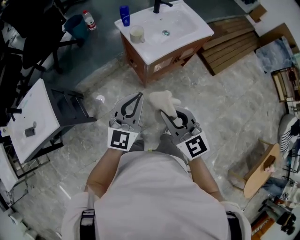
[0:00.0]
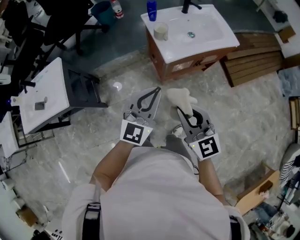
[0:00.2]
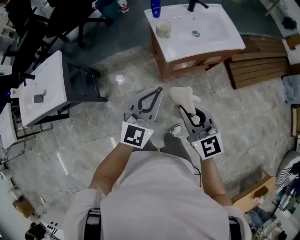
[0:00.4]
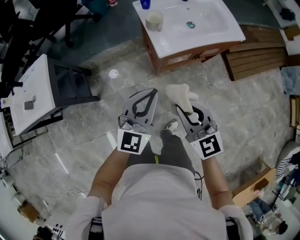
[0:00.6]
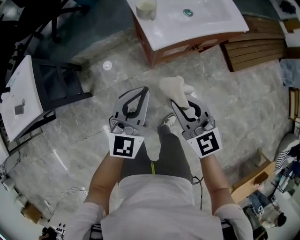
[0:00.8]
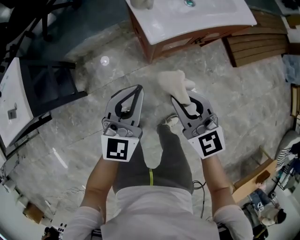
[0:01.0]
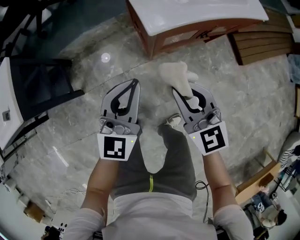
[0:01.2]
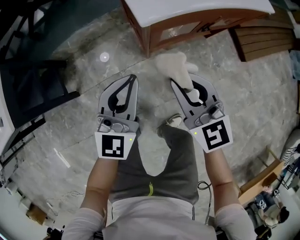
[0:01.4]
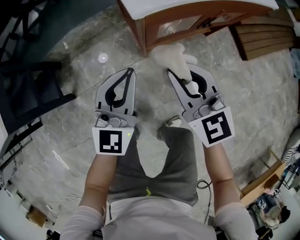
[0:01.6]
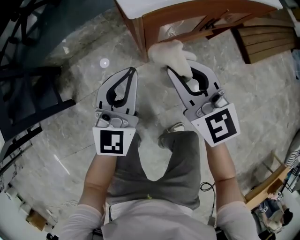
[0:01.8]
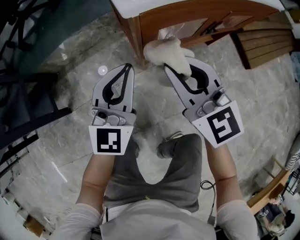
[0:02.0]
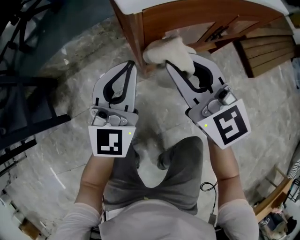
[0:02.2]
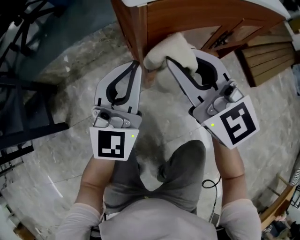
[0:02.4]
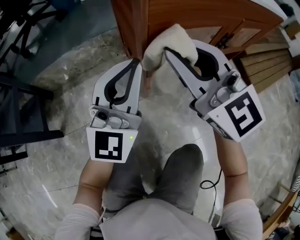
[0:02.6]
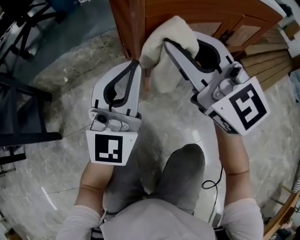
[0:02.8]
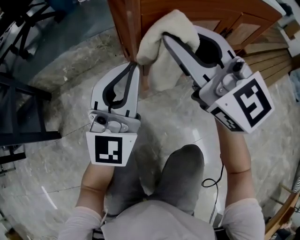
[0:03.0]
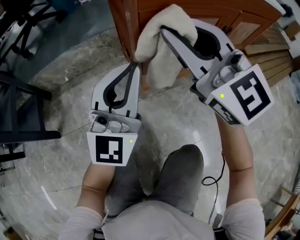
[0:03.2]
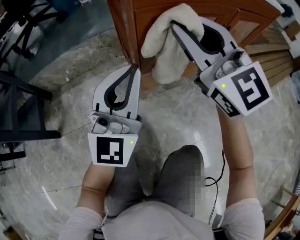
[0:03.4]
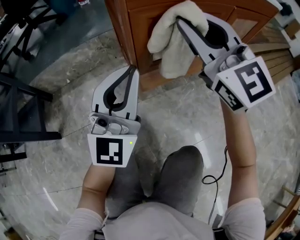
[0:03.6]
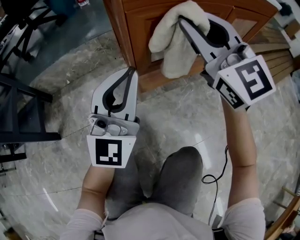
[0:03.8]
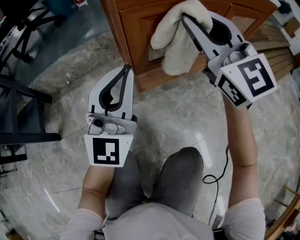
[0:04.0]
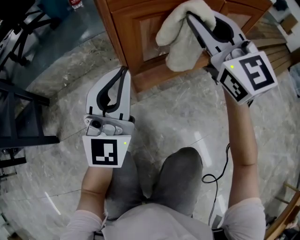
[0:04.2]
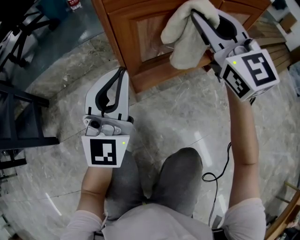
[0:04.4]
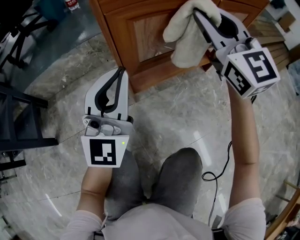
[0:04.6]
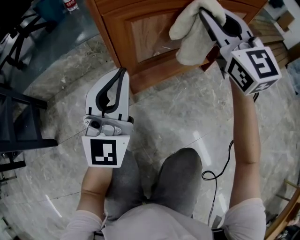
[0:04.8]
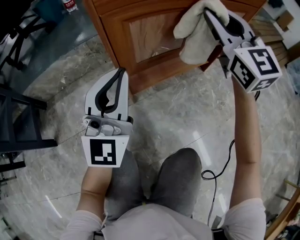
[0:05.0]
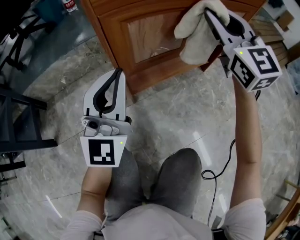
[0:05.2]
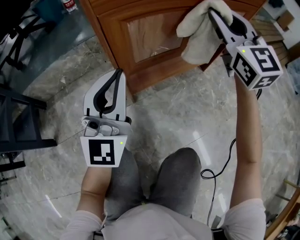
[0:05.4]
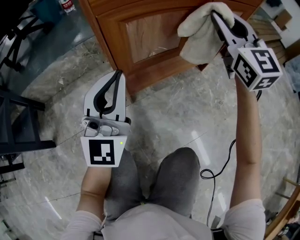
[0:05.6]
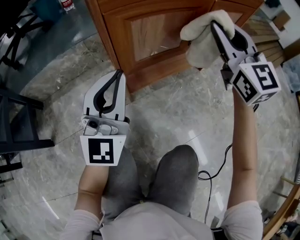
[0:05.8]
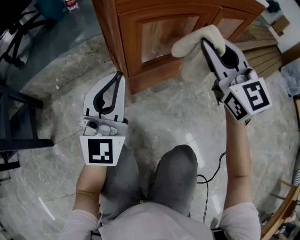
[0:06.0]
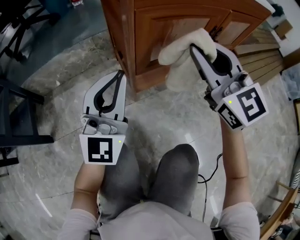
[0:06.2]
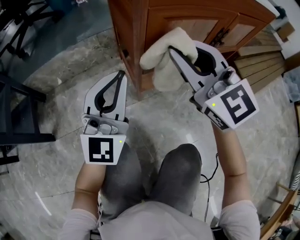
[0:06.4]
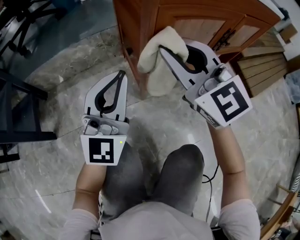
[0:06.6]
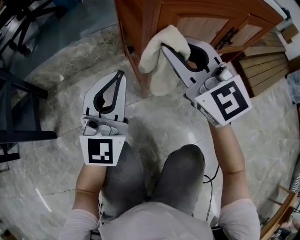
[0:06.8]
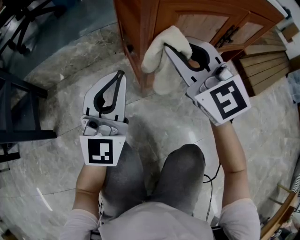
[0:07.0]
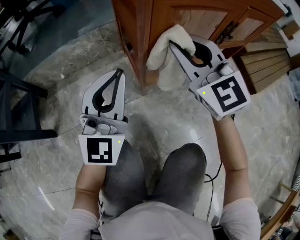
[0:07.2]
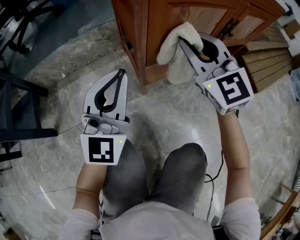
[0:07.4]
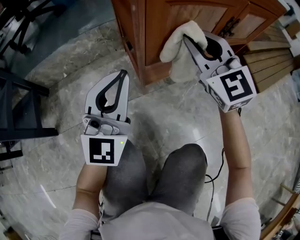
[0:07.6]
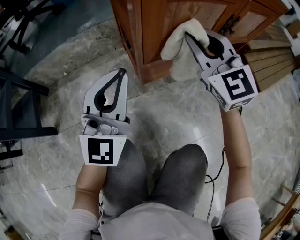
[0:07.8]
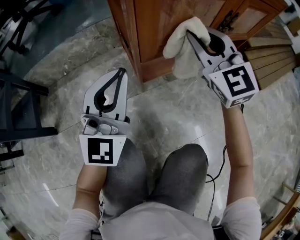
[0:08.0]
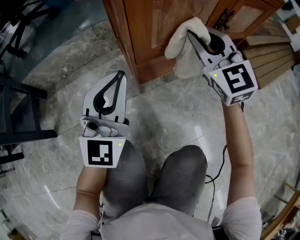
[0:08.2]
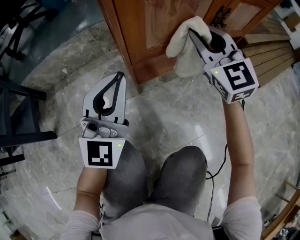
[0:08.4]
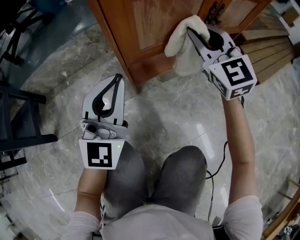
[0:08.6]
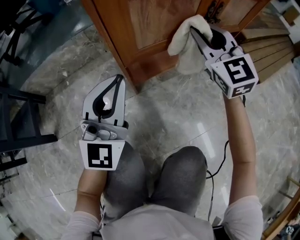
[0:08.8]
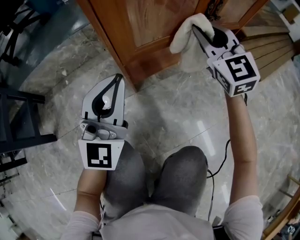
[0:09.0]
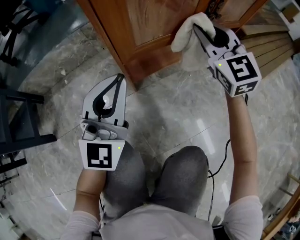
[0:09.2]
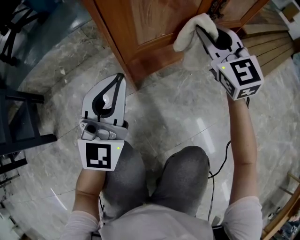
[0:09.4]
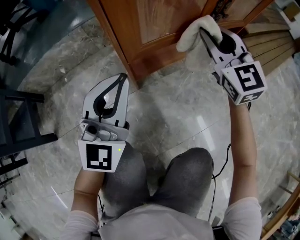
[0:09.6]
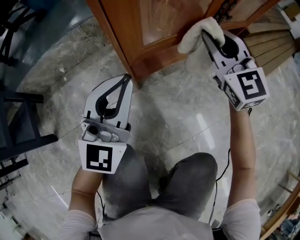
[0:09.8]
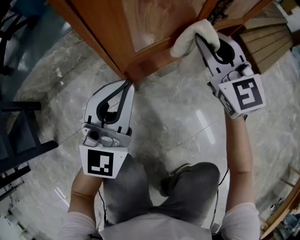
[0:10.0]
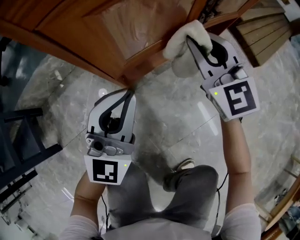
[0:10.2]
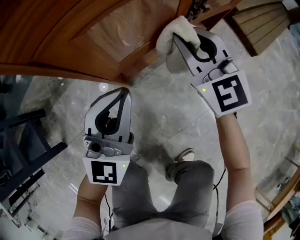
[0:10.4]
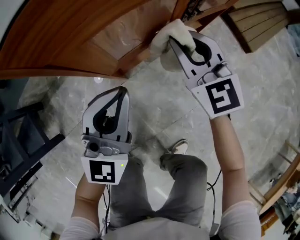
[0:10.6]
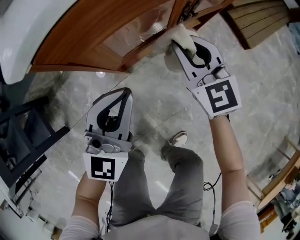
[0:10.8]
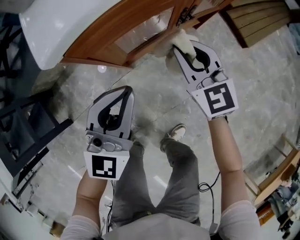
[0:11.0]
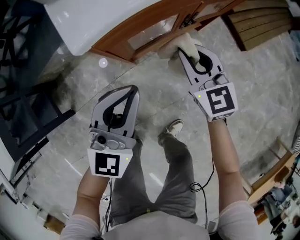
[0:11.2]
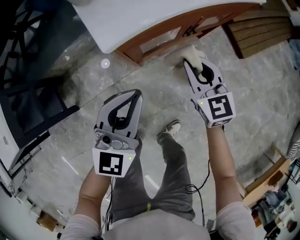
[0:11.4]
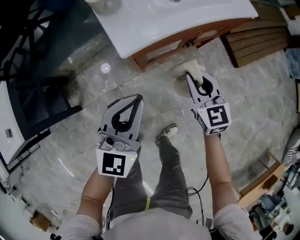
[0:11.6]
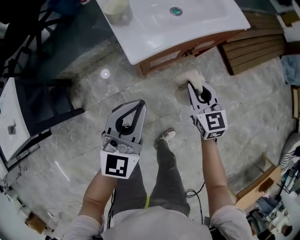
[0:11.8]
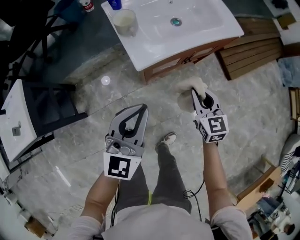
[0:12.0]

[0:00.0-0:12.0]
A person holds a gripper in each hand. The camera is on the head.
0:00.0 to 0:01.6: The right gripper moves downward and forward, some 50 cm. The left gripper goes approximately 40 cm downward.
0:01.6 to 0:03.0: The left gripper moves downward, approximately 15 cm, and changes its angle by roughly 20 degrees, while the right gripper is displaced downward and forward by some 10 cm, and rotates about 20 degrees.
0:03.0 to 0:04.4: The right gripper is displaced to the right by some 15 cm.
0:04.4 to 0:06.0: The right gripper shifts roughly 5 cm backward, and reaches about 10 cm to the right, then returns.
0:06.0 to 0:07.6: The right gripper goes about 10 cm to the left and downward; the left gripper moves approximately 5 cm.
0:07.6 to 0:09.0: The right gripper travels to the right by roughly 10 cm, while the left gripper is displaced to the right by approximately 5 cm.
0:09.0 to 0:10.4: The left gripper shifts approximately 5 cm forward.
0:10.4 to 0:12.0: Both grippers move upward, roughly 40 cm. The right gripper changes its angle by roughly 30 degrees.

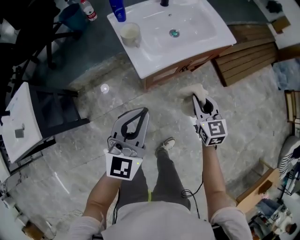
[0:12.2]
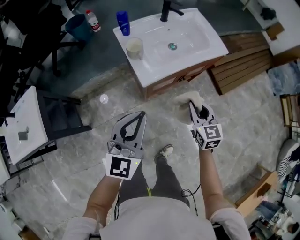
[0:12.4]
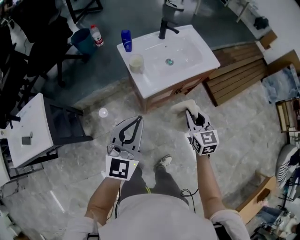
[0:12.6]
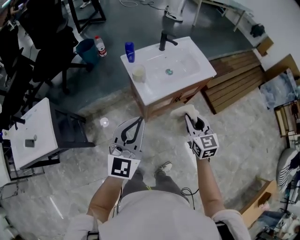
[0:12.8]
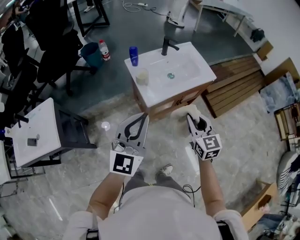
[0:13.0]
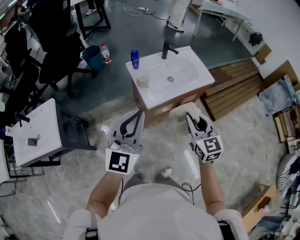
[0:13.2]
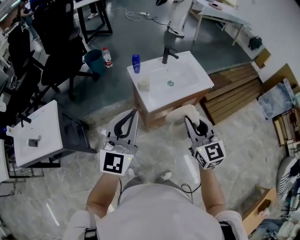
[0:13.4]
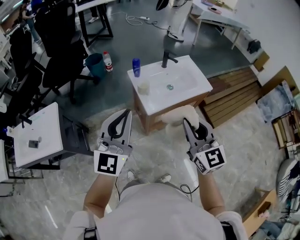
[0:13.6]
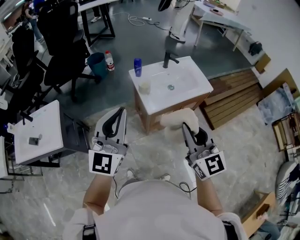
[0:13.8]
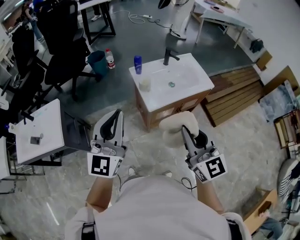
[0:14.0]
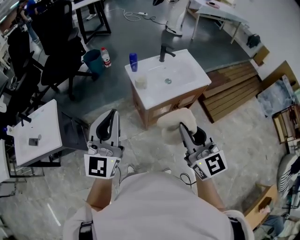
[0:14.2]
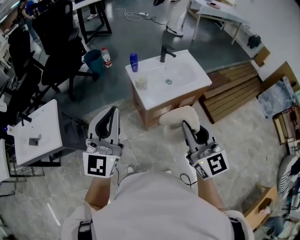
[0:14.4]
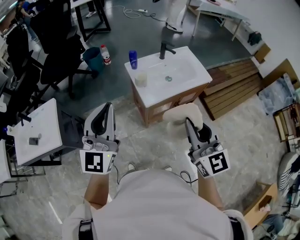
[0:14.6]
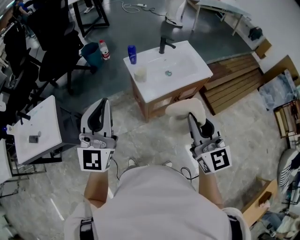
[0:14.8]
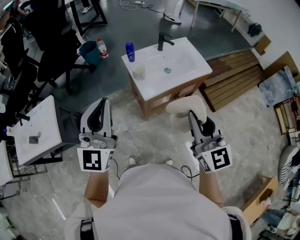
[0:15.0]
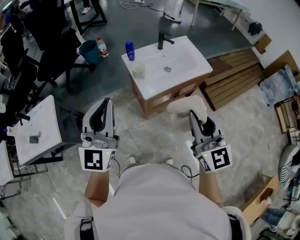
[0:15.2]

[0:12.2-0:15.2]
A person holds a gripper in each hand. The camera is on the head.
0:12.2 to 0:13.8: The left gripper travels upward by about 35 cm, and swivels roughly 20 degrees. Meanwhile the right gripper is displaced upward and backward by roughly 40 cm, and swivels about 30 degrees.
0:13.8 to 0:15.2: There are only small adjustments of the grippers.

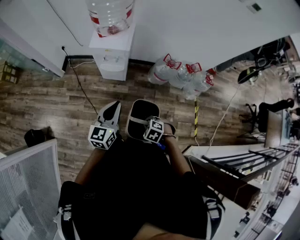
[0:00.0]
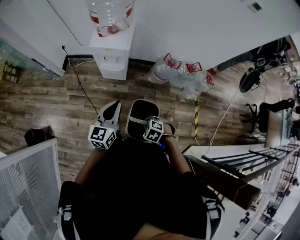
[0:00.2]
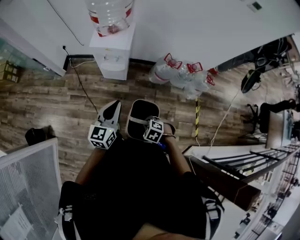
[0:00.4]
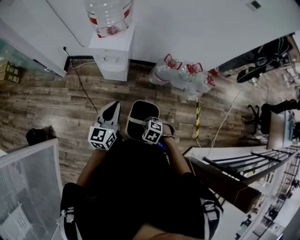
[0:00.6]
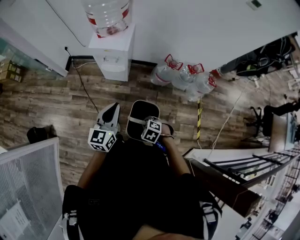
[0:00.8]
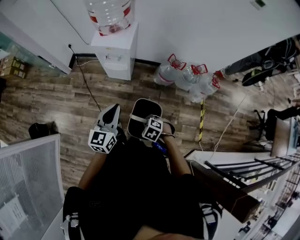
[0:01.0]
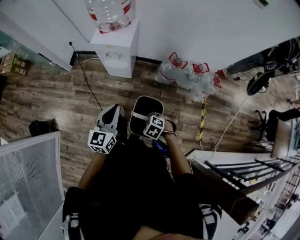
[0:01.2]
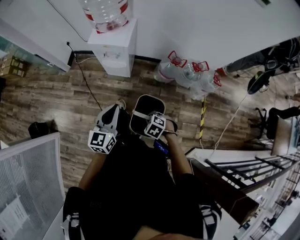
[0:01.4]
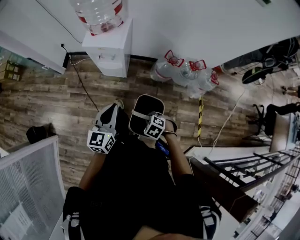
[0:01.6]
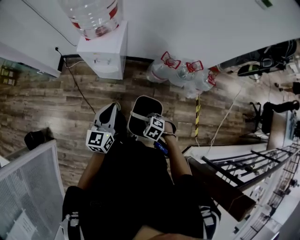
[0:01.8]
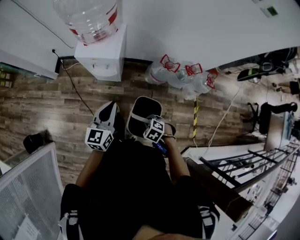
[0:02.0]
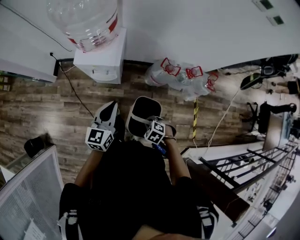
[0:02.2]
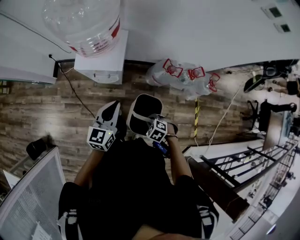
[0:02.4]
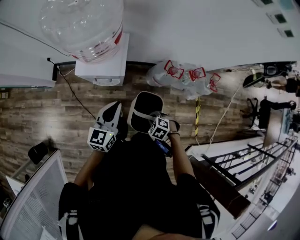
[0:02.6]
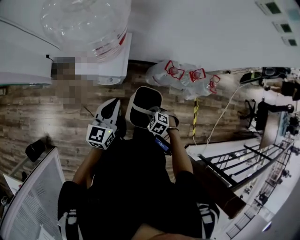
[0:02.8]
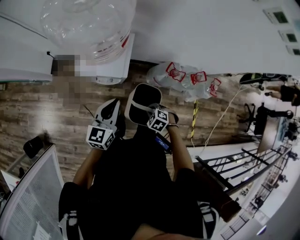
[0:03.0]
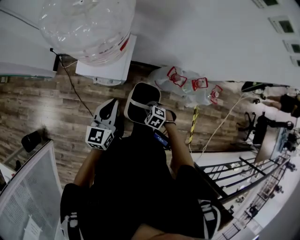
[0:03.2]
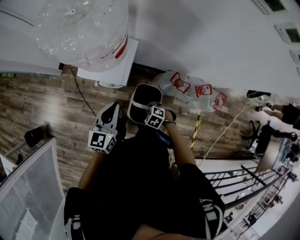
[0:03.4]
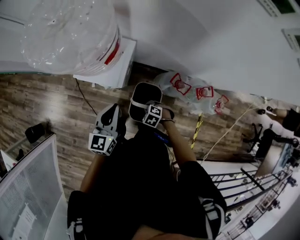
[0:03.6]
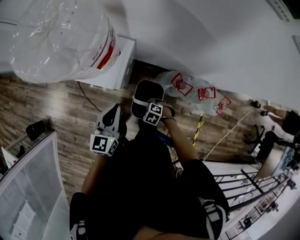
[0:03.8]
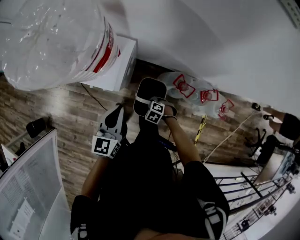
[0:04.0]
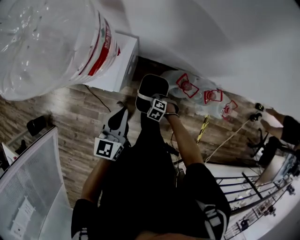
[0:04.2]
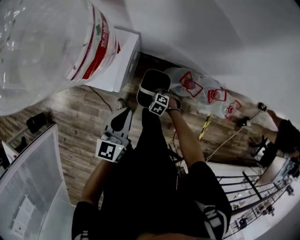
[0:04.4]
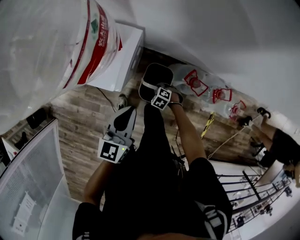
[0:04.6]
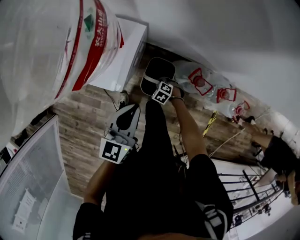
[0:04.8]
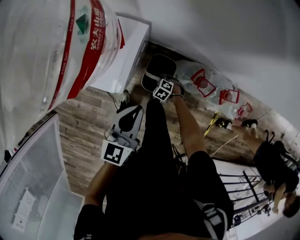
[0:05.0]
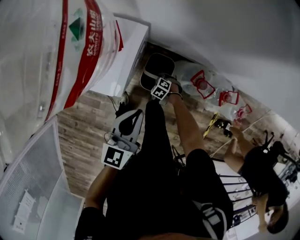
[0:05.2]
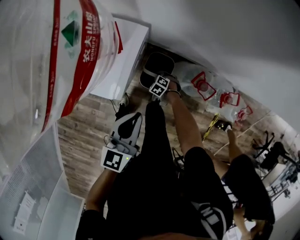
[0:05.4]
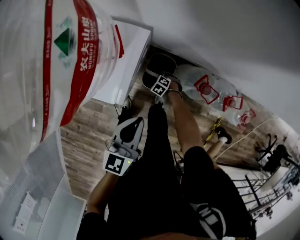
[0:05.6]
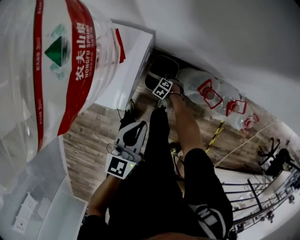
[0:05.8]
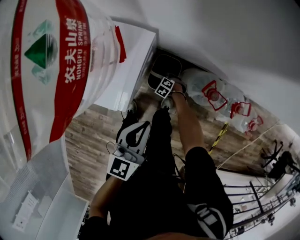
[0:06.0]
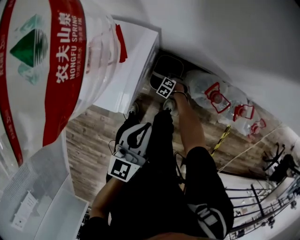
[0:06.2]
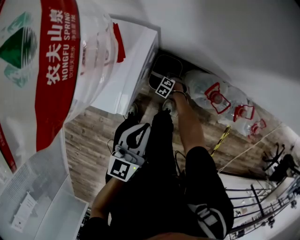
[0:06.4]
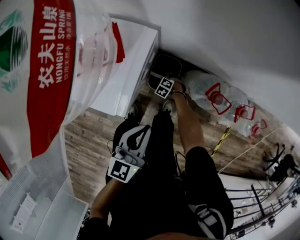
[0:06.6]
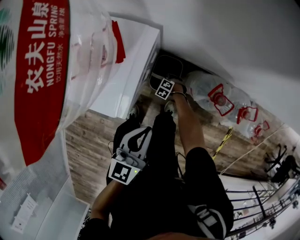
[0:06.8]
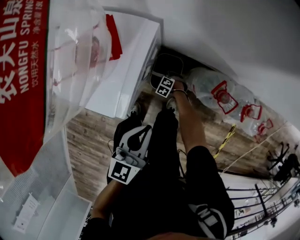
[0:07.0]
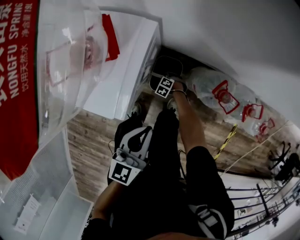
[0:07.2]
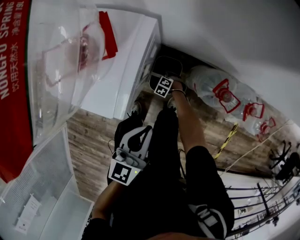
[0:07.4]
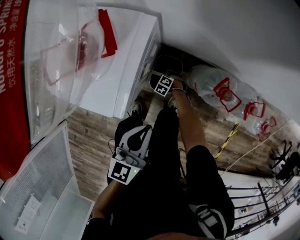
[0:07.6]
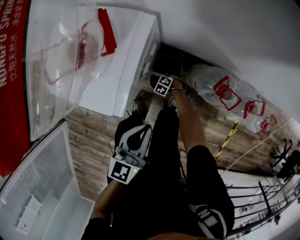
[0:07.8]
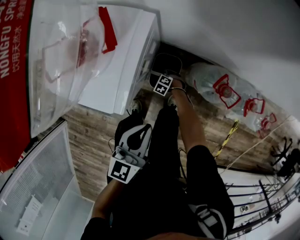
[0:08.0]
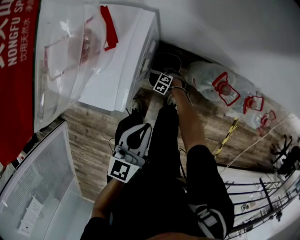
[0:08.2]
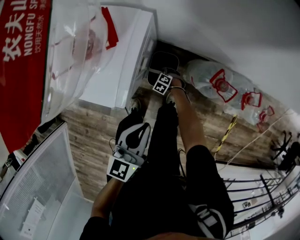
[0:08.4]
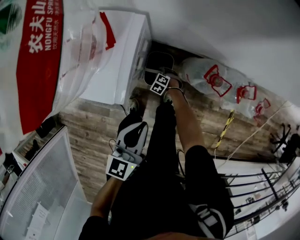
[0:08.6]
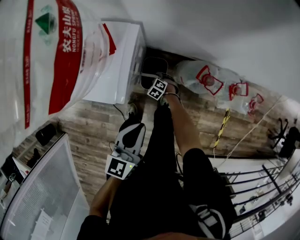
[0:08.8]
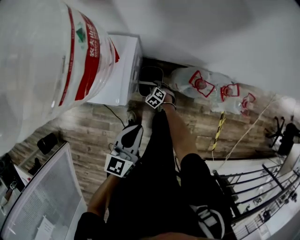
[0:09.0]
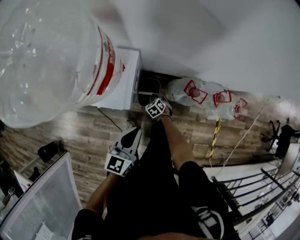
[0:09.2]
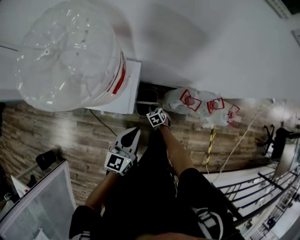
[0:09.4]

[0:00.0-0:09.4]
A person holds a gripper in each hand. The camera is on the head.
0:00.0 to 0:01.6: The left gripper shifts by about 5 cm, while the right gripper moves roughly 10 cm.
0:01.6 to 0:03.2: The right gripper shifts by about 30 cm; the left gripper moves roughly 25 cm.
0:03.2 to 0:04.8: The right gripper moves downward, approximately 25 cm, while the left gripper changes place by some 20 cm.
0:04.8 to 0:06.2: The right gripper shifts about 15 cm downward. Meanwhile the left gripper goes roughly 10 cm downward.
0:06.2 to 0:07.8: Both grippers move downward, roughly 5 cm.
0:07.8 to 0:09.4: The left gripper shifts roughly 20 cm upward. Meanwhile the right gripper moves upward, approximately 30 cm, rolls clockwise, seen from behind, by about 50 degrees, and opens, then closes again.
